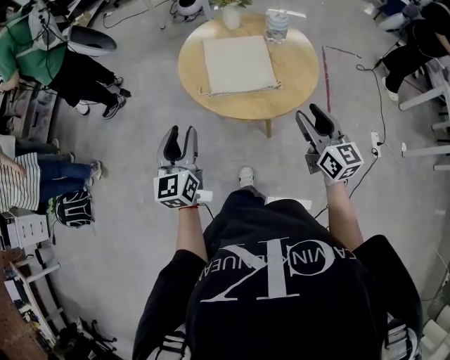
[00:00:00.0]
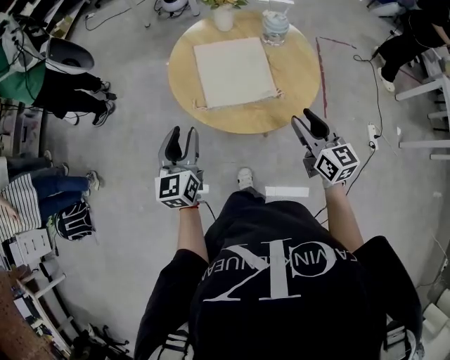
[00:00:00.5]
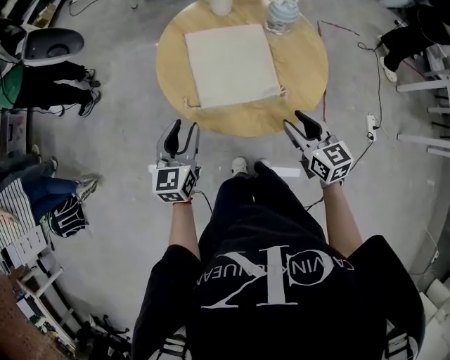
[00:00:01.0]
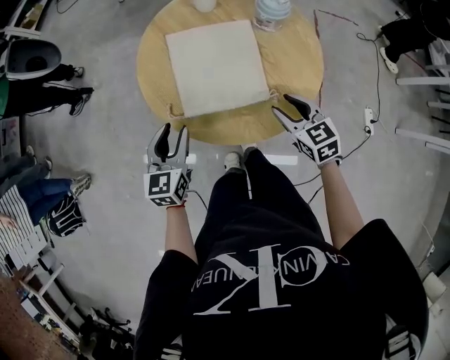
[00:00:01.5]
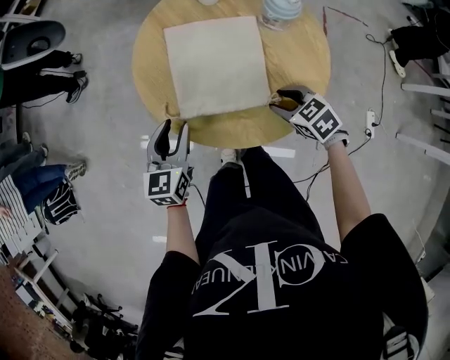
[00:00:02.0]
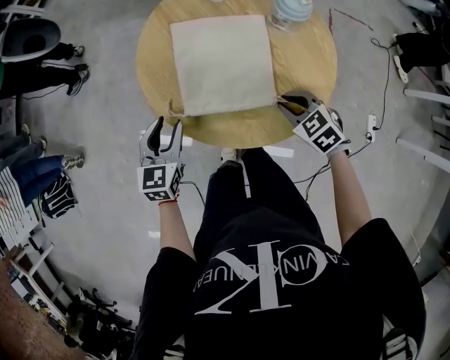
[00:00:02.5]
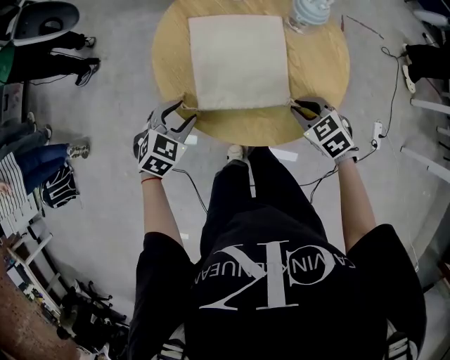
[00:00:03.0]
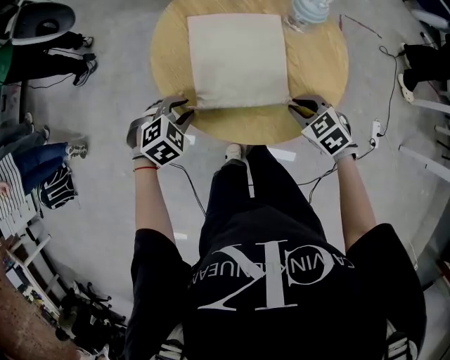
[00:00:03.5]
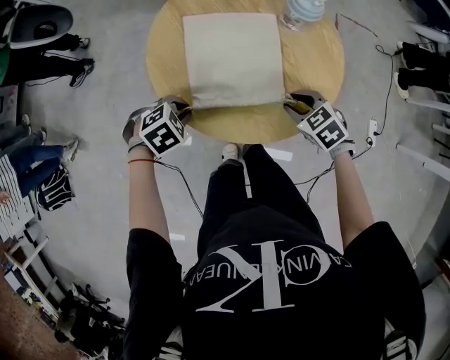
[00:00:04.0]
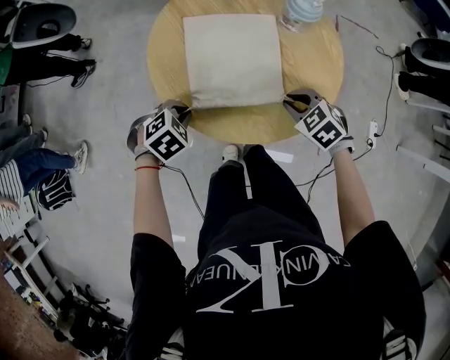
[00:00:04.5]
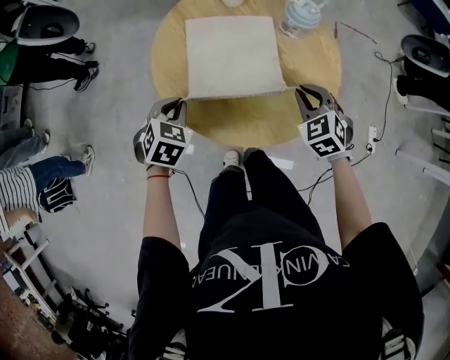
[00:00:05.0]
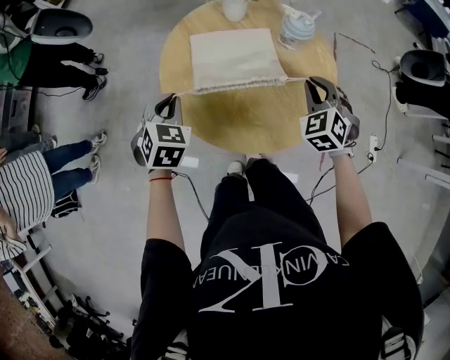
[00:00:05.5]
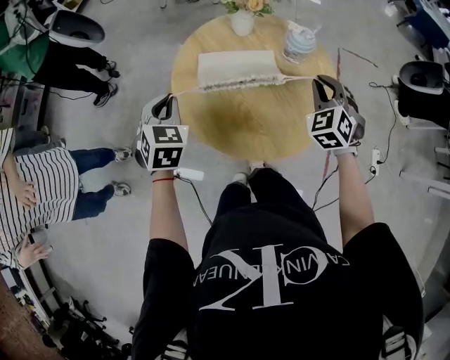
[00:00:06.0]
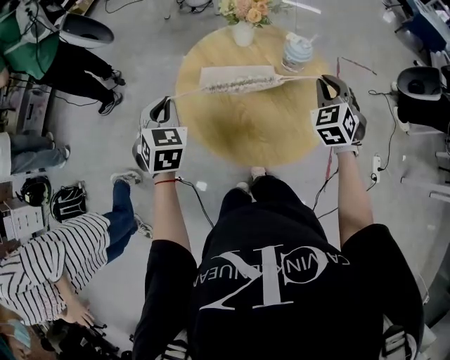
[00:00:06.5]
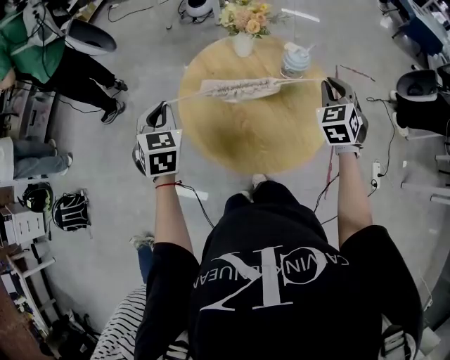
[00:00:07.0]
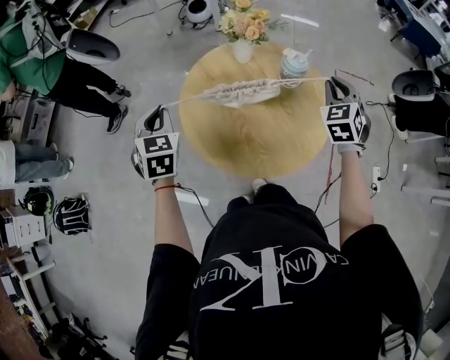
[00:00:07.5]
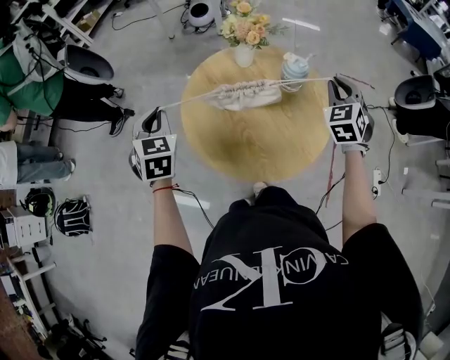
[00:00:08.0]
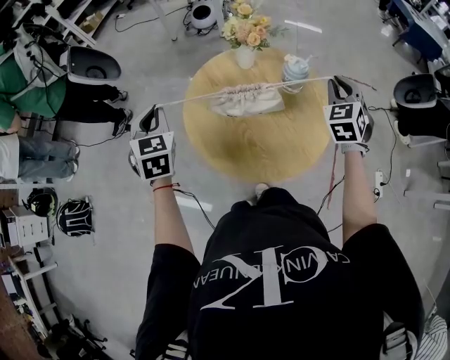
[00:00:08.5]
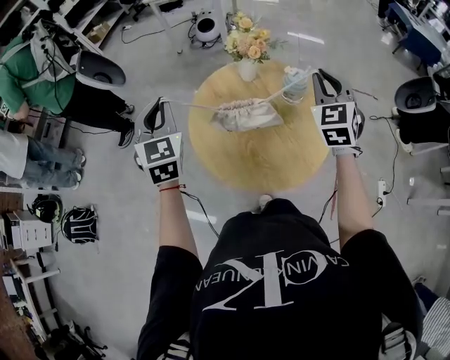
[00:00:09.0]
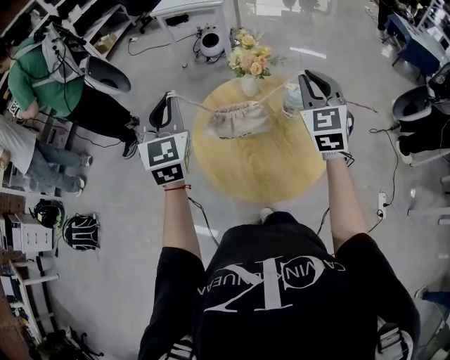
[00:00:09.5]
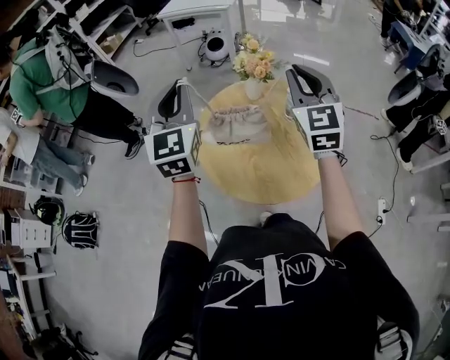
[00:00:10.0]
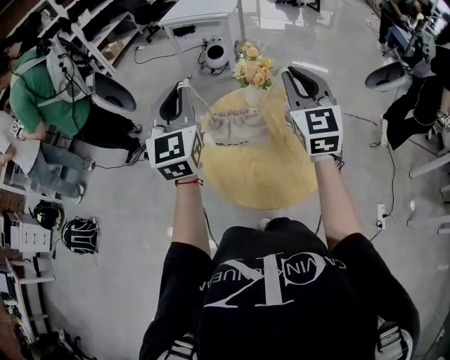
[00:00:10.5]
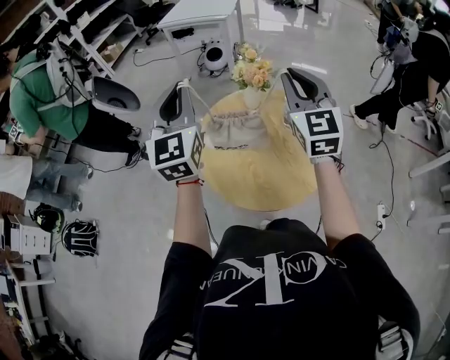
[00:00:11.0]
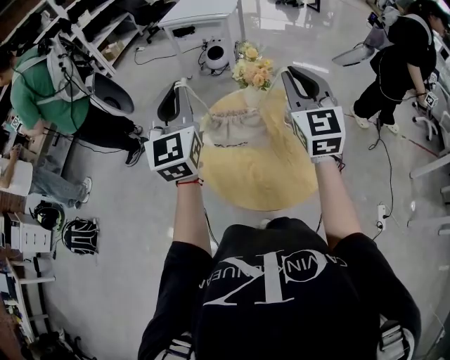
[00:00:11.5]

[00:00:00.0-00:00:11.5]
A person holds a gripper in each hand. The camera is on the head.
00:00:00.0 to 00:00:02.0: The left gripper moves forward, downward and to the right, some 20 cm, and rotates about 20 degrees. The right gripper travels downward and forward by some 25 cm, and tilts its fingers about 50 degrees downward.
00:00:02.0 to 00:00:04.0: The right gripper closes its fingers, while the left gripper travels downward by roughly 10 cm, tips its fingers downward by some 50 degrees, and closes its fingers.
00:00:04.0 to 00:00:06.0: Both grippers move upward, about 15 cm. The right gripper changes its angle by about 50 degrees. The left gripper tips its fingers upward by about 30 degrees.
00:00:06.0 to 00:00:07.5: Both grippers travel together upward, approximately 5 cm.
00:00:07.5 to 00:00:09.5: The left gripper goes about 15 cm upward, and turns by roughly 30 degrees; the right gripper moves upward and to the left, roughly 15 cm, and rotates about 30 degrees.
00:00:09.5 to 00:00:11.5: Both grippers travel together upward, approximately 5 cm.

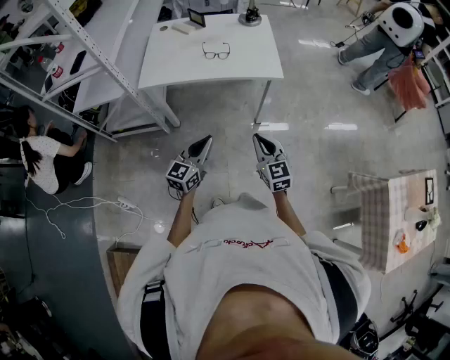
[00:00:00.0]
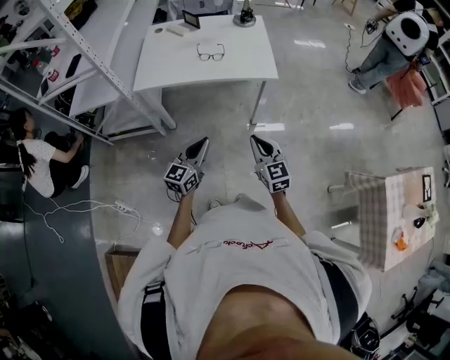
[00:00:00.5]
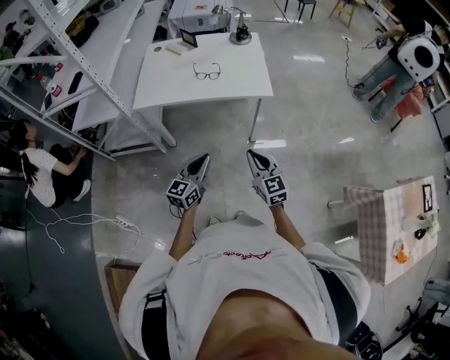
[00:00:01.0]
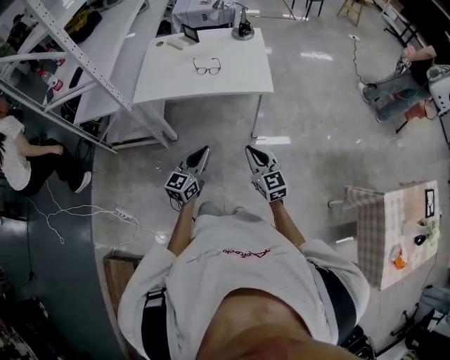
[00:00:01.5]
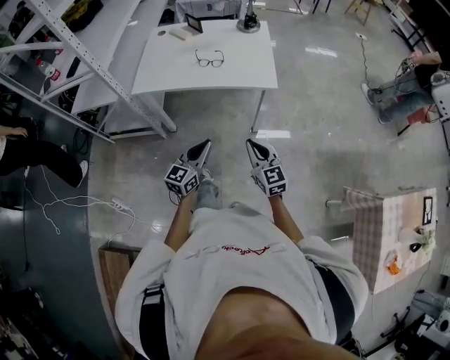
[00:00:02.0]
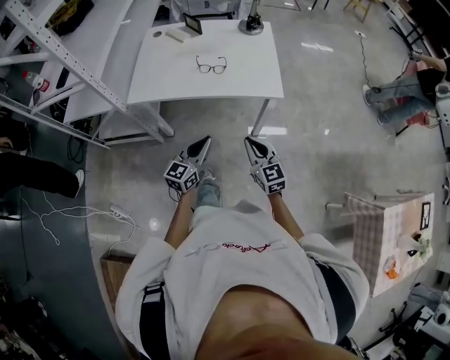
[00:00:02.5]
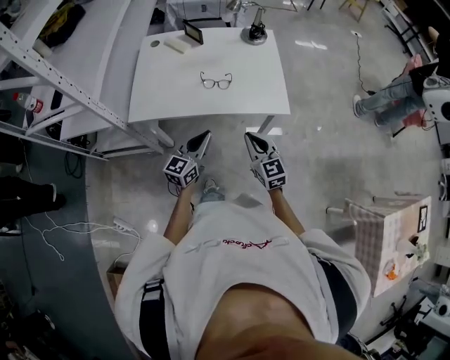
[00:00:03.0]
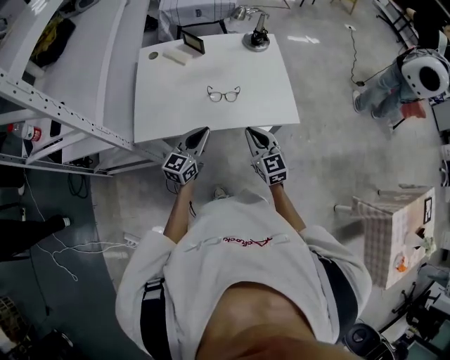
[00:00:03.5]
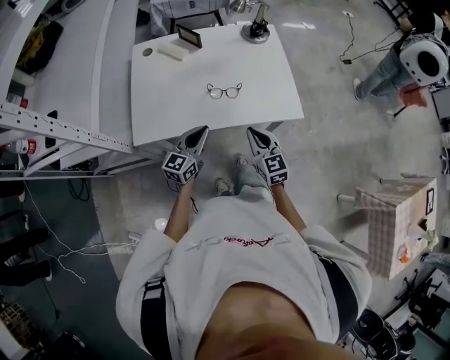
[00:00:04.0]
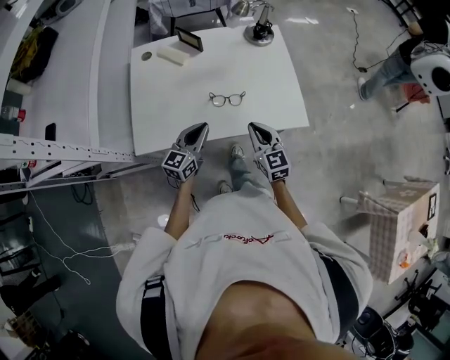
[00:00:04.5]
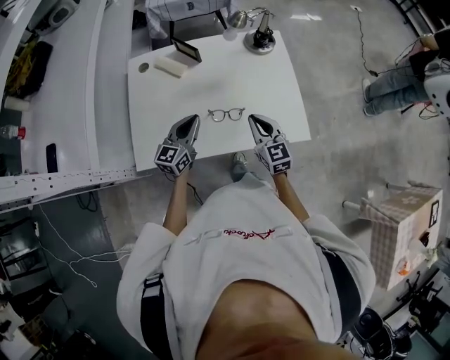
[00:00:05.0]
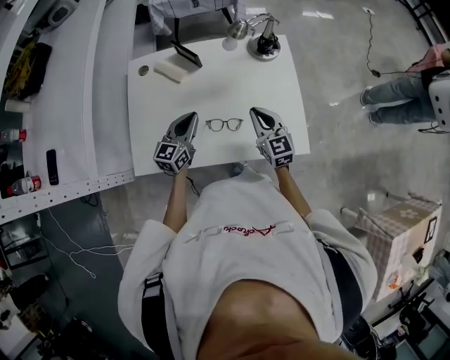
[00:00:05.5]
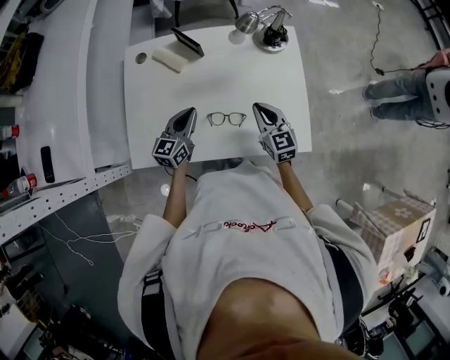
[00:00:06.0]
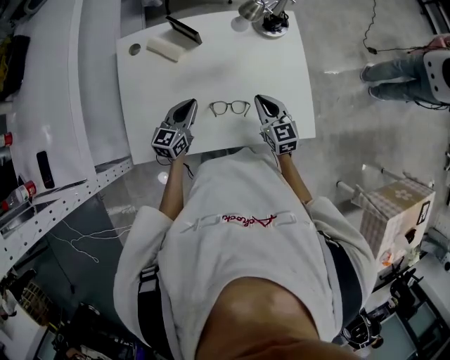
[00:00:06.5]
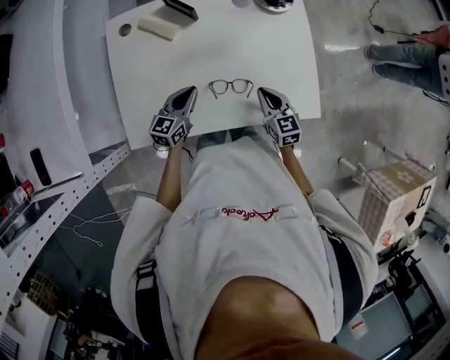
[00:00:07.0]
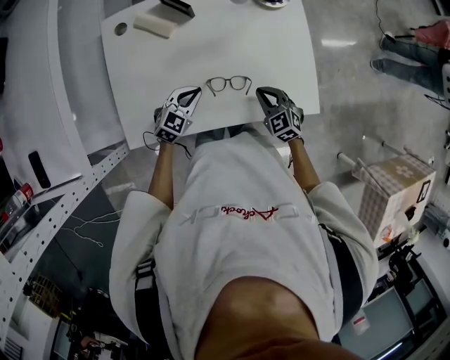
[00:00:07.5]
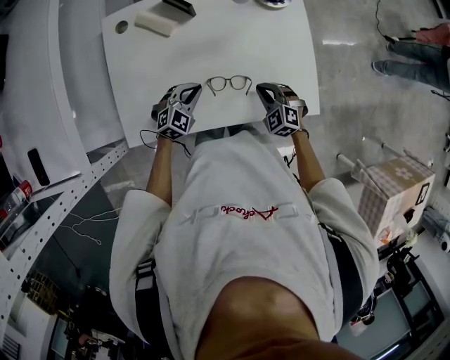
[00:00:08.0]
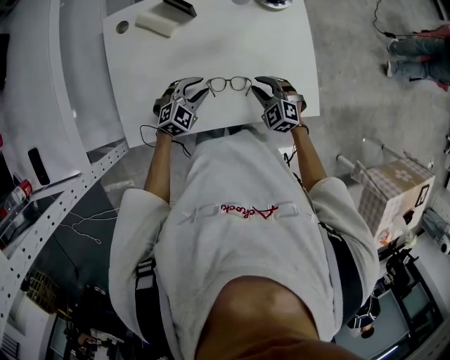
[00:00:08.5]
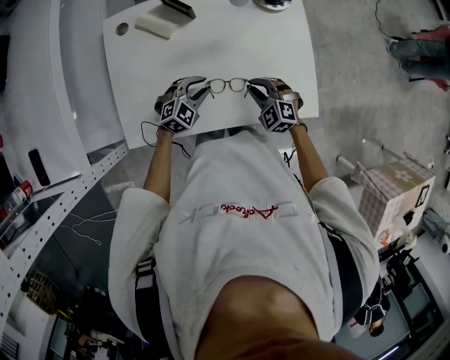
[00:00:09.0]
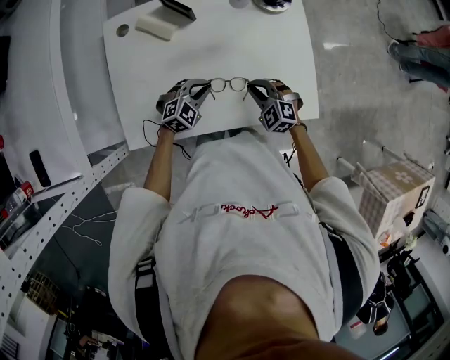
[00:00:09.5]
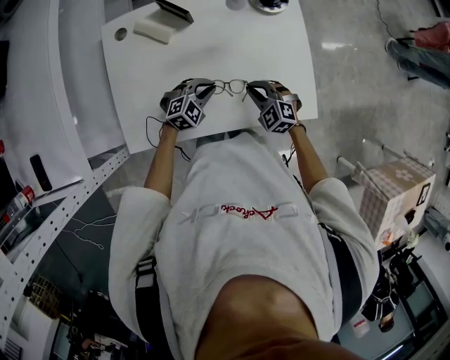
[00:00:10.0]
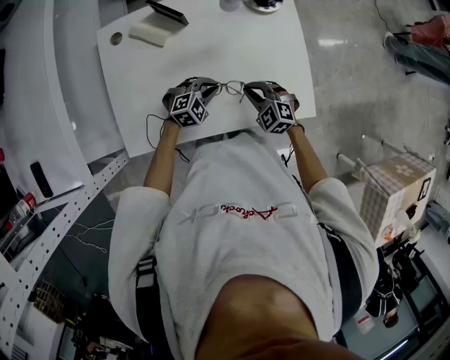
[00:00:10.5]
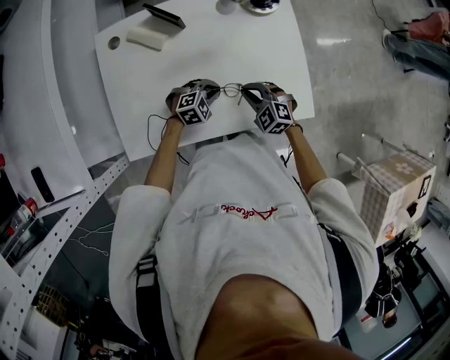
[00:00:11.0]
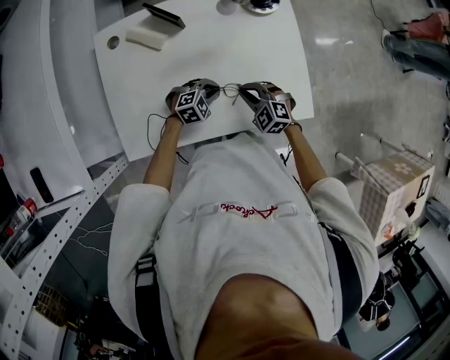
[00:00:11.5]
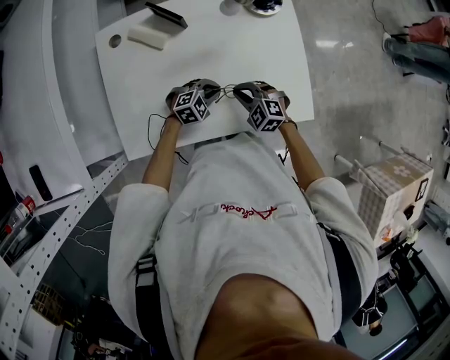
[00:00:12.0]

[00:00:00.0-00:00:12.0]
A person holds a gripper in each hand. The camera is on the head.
00:00:00.0 to 00:00:02.0: The right gripper moves about 5 cm. Meanwhile the left gripper heads to the right, covering roughly 5 cm.
00:00:02.0 to 00:00:04.0: The grippers both shift forward and to the left by about 30 cm.
00:00:04.0 to 00:00:06.0: Both grippers move forward, approximately 20 cm.
00:00:06.0 to 00:00:08.0: The left gripper is displaced downward by some 10 cm, and changes its angle by approximately 50 degrees; the right gripper shifts roughly 15 cm downward and backward, and turns by approximately 50 degrees.
00:00:08.0 to 00:00:10.0: The right gripper opens and closes again. Meanwhile the left gripper goes some 5 cm to the right, and opens, then closes once more.
00:00:10.0 to 00:00:12.0: The grippers make only small movements.

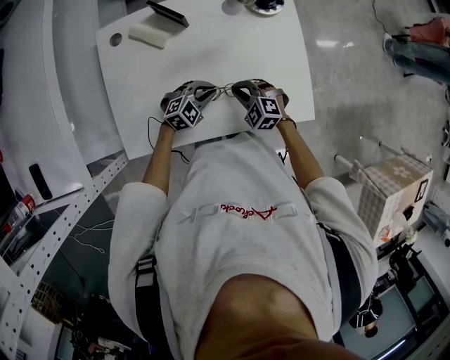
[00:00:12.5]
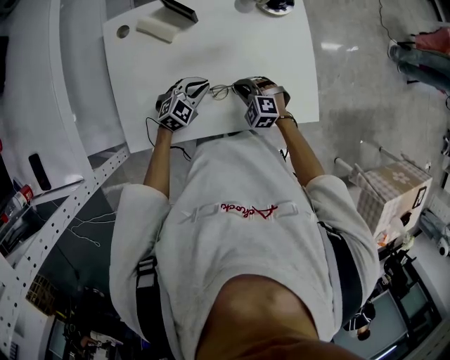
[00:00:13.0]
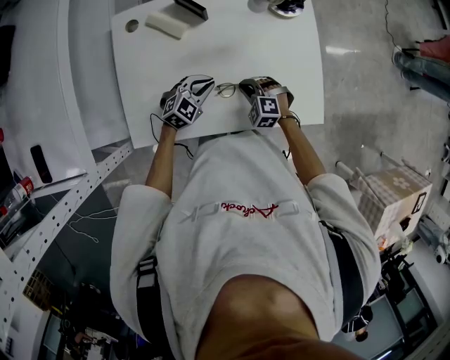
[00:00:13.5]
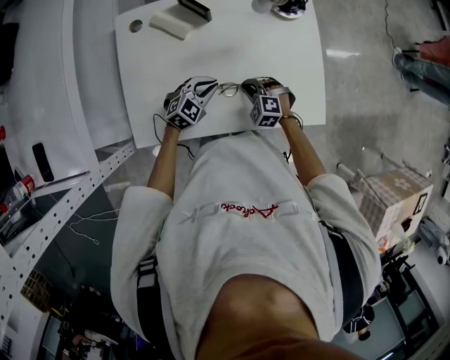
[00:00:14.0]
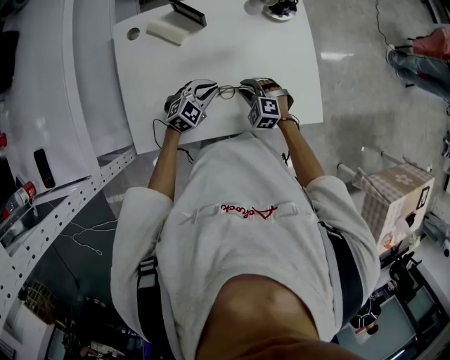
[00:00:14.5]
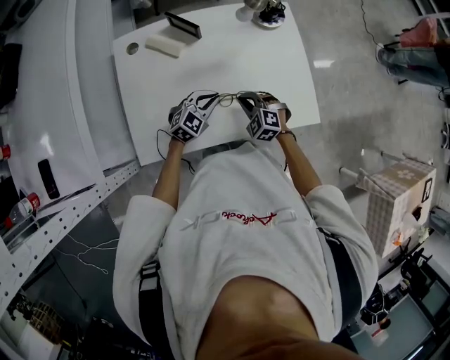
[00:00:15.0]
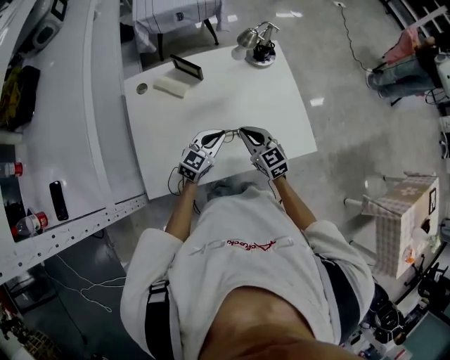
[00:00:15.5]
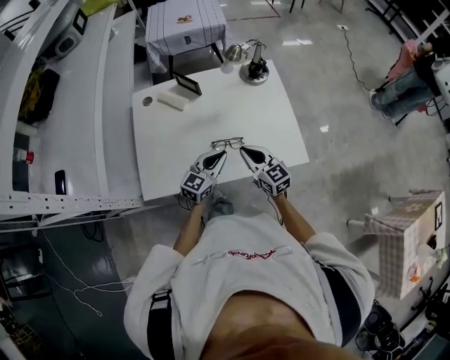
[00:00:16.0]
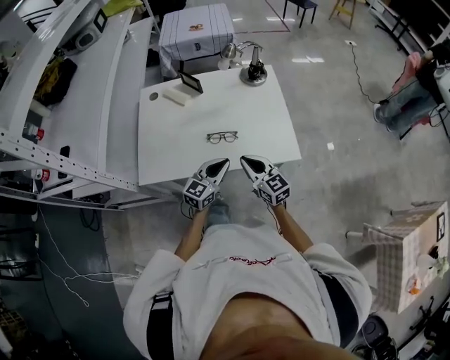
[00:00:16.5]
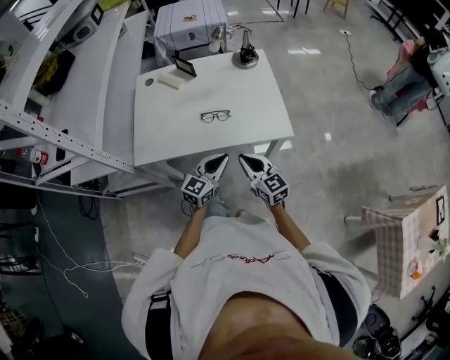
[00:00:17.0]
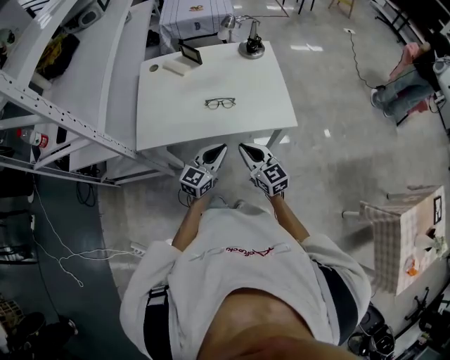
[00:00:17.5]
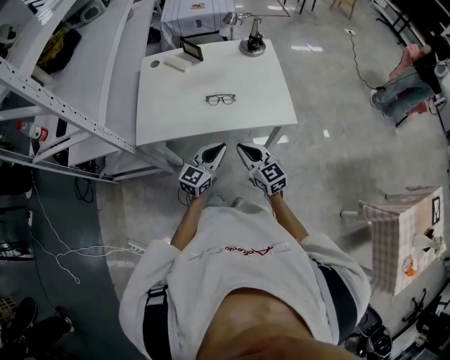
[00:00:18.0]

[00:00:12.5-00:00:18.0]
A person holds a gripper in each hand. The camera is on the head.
00:00:12.5 to 00:00:14.5: The left gripper shifts by about 5 cm.
00:00:14.5 to 00:00:16.0: The right gripper shifts approximately 15 cm upward, angles its fingers upward, by approximately 40 degrees, and closes its fingers. The left gripper heads upward, backward and to the right, covering approximately 15 cm, and changes its angle by about 30 degrees.
00:00:16.0 to 00:00:18.0: Both grippers move backward, approximately 20 cm.
